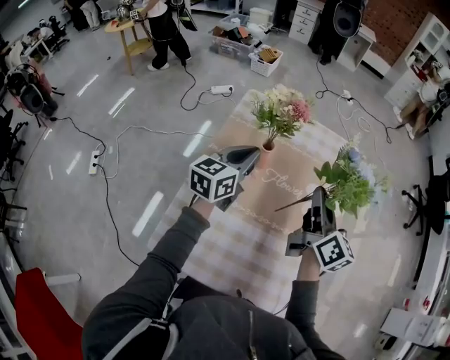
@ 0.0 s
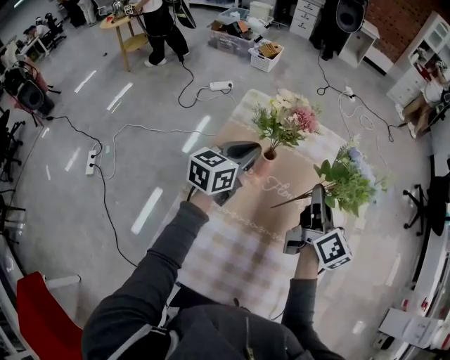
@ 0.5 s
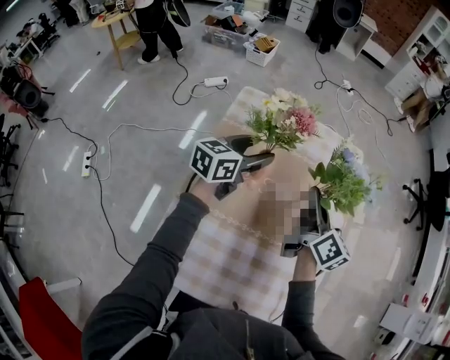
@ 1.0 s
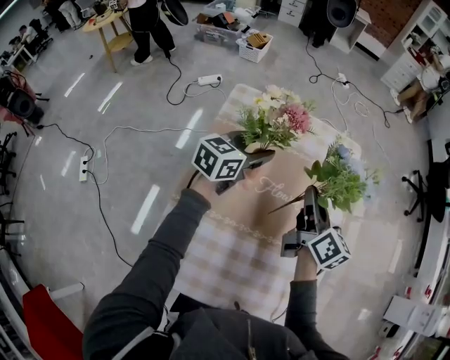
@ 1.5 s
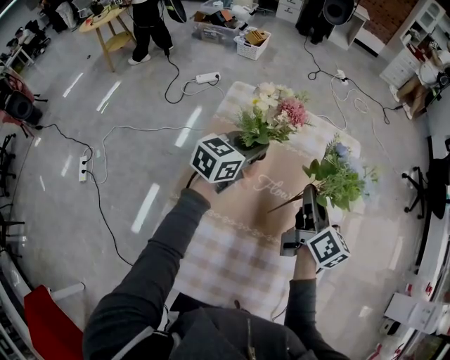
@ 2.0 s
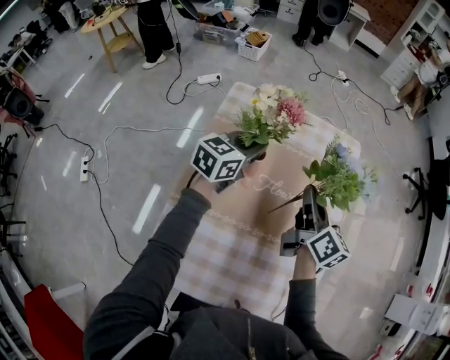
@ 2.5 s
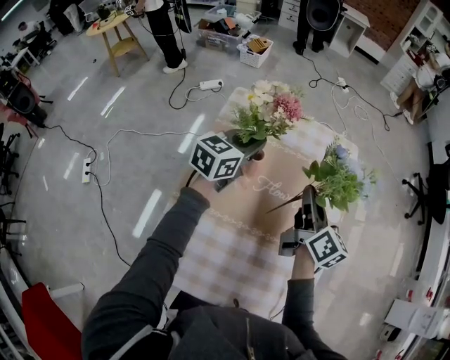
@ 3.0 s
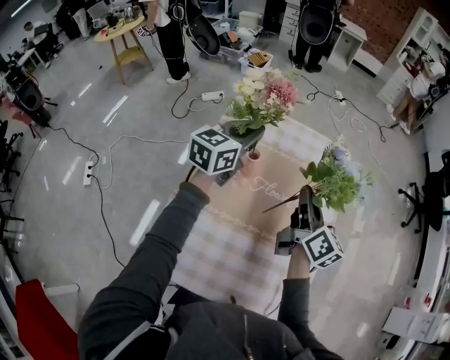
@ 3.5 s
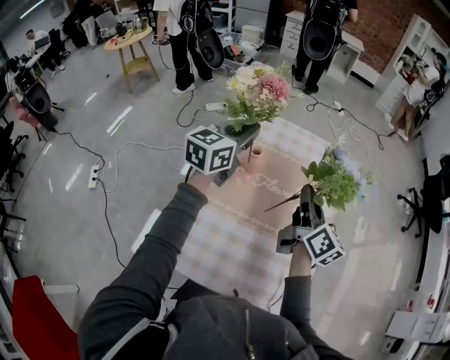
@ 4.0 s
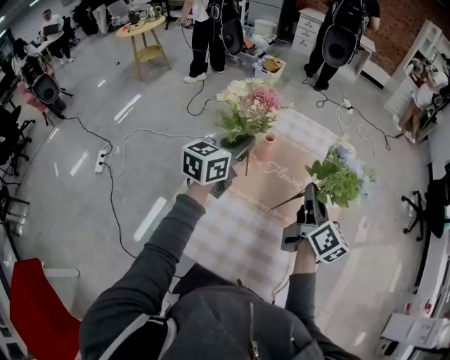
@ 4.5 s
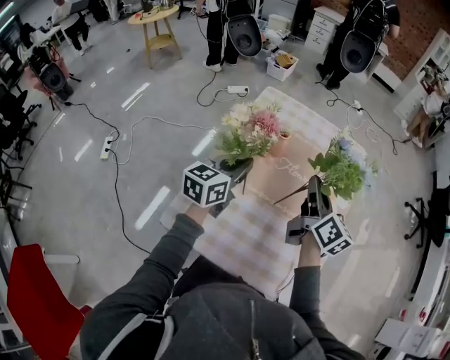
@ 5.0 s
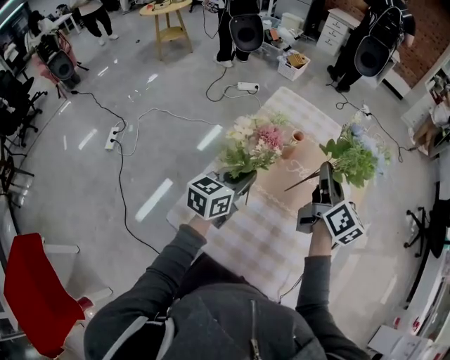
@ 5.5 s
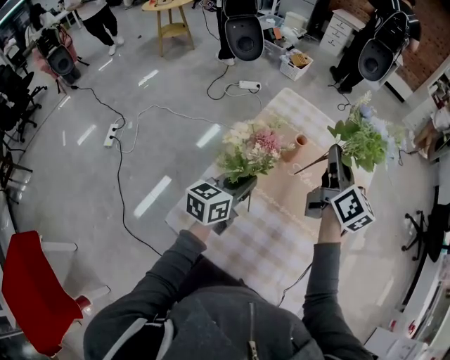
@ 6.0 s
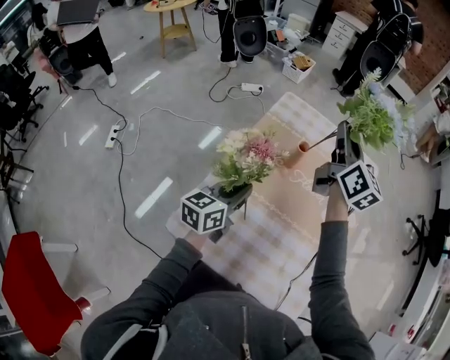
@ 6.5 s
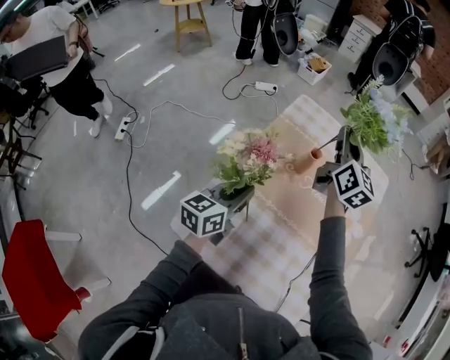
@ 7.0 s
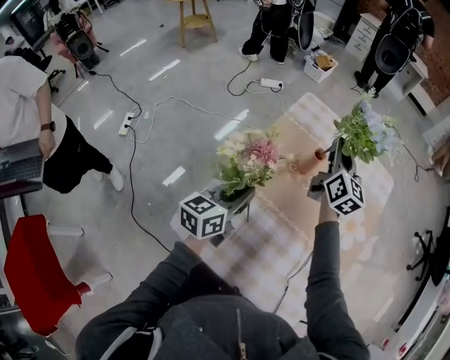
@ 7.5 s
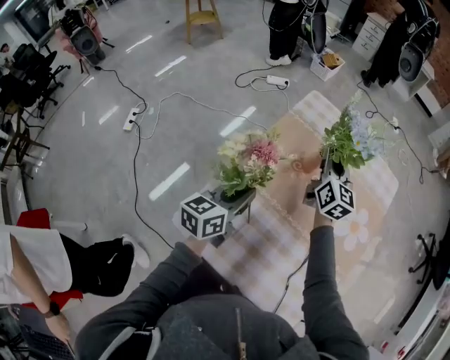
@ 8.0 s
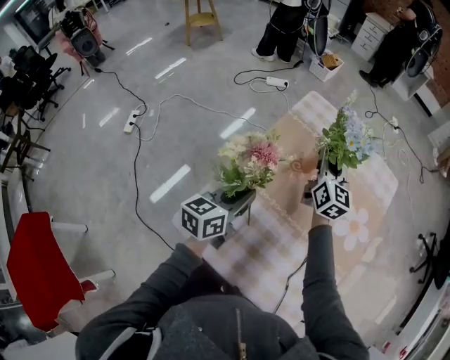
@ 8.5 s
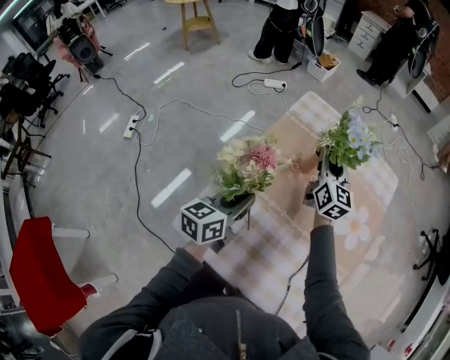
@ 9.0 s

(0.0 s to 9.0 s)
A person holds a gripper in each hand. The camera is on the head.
0.0 s - 2.0 s: The left gripper shifts some 10 cm forward, and opens and closes again. Meanwhile the right gripper heads downward and forward, covering about 10 cm.
2.0 s - 4.5 s: Both grippers move backward and upward, some 15 cm.
4.5 s - 7.0 s: The left gripper is displaced backward, downward and to the left by approximately 15 cm. Meanwhile the right gripper moves forward and to the left, roughly 20 cm, and swivels approximately 20 degrees.
7.0 s - 9.0 s: The right gripper goes approximately 10 cm downward.

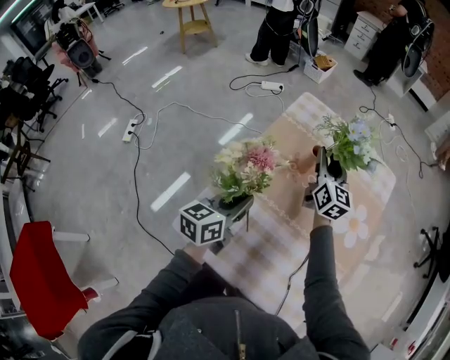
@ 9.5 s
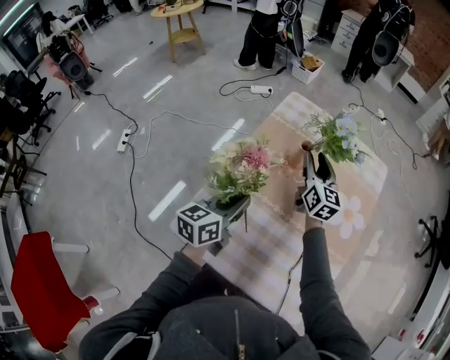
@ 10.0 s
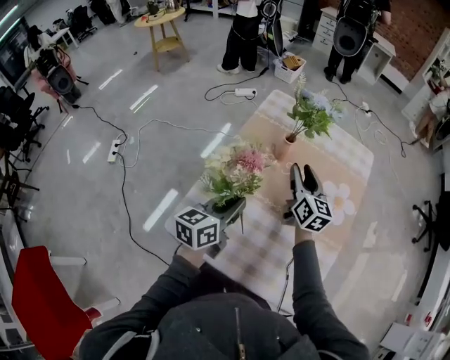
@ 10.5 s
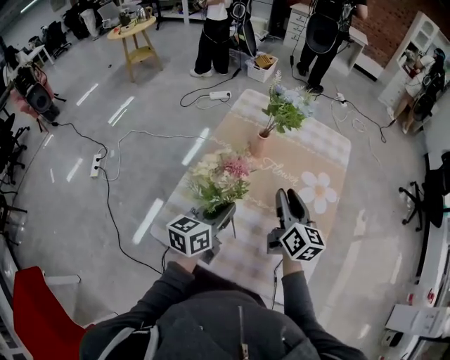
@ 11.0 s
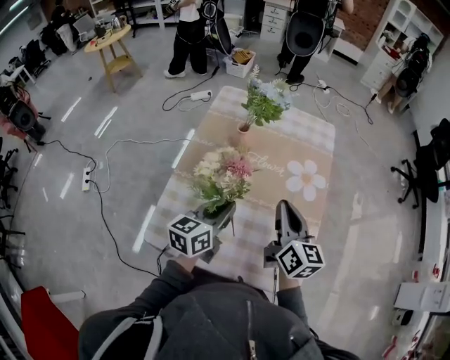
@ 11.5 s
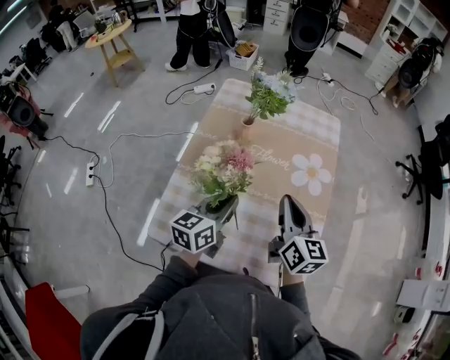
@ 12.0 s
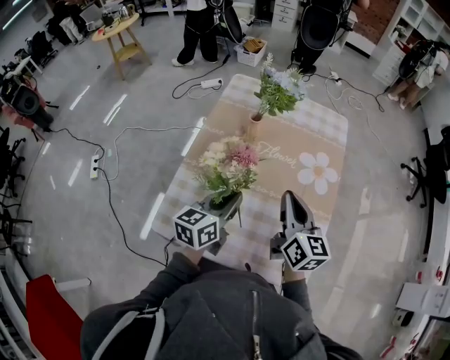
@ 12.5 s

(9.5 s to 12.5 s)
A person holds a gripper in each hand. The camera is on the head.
9.5 s - 11.0 s: The left gripper is displaced to the right by about 5 cm. The right gripper is displaced backward and to the right by approximately 20 cm.
11.0 s - 12.5 s: The right gripper goes some 5 cm backward, and closes up.

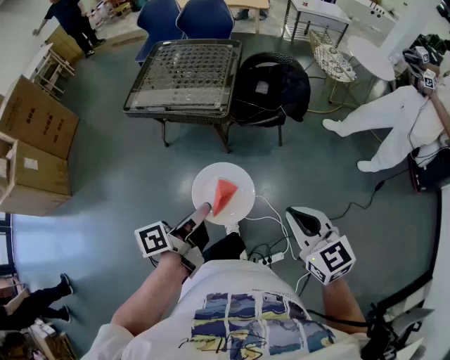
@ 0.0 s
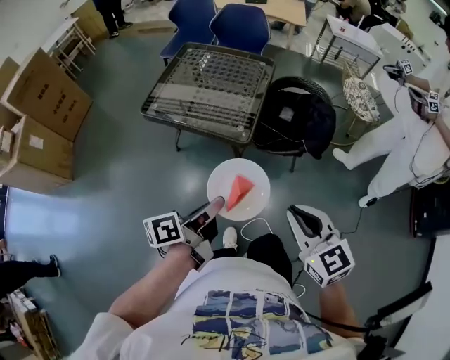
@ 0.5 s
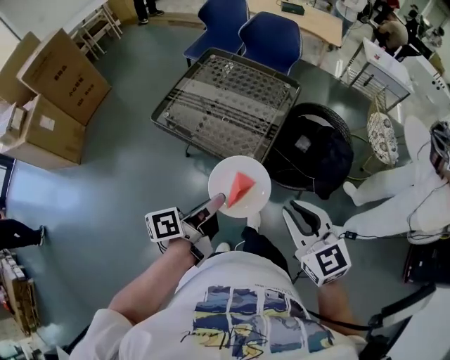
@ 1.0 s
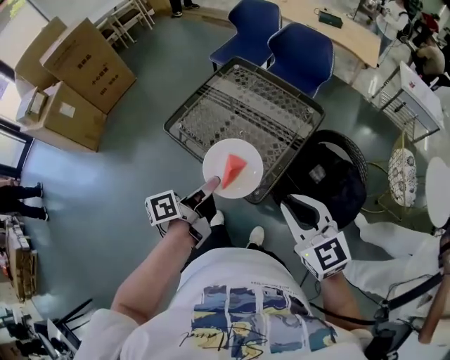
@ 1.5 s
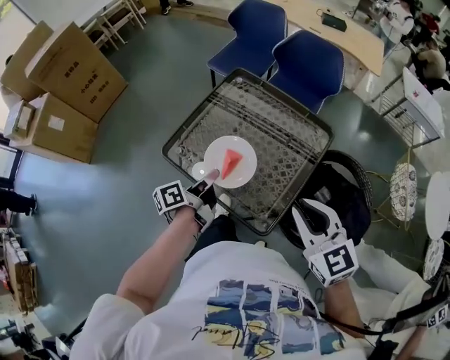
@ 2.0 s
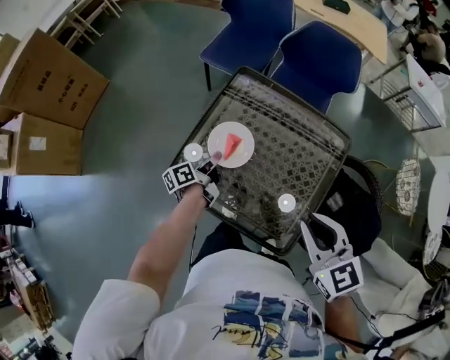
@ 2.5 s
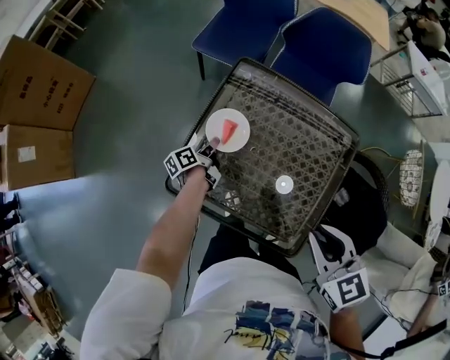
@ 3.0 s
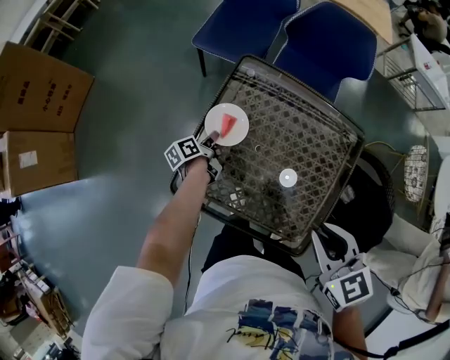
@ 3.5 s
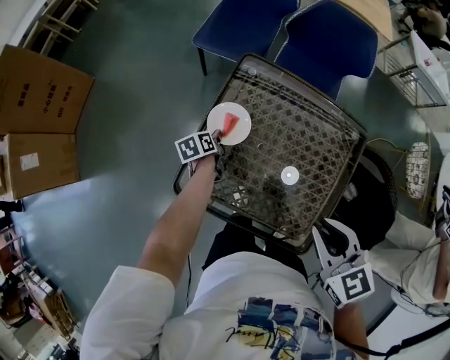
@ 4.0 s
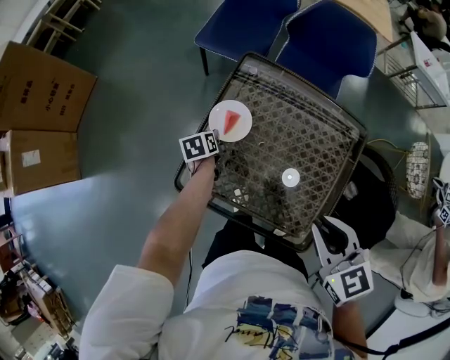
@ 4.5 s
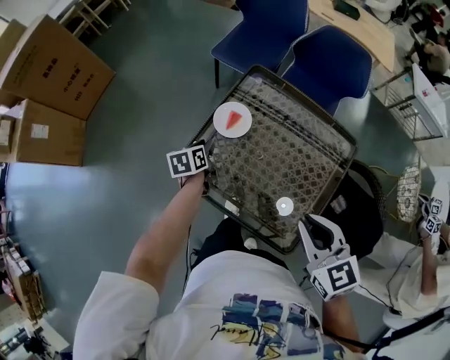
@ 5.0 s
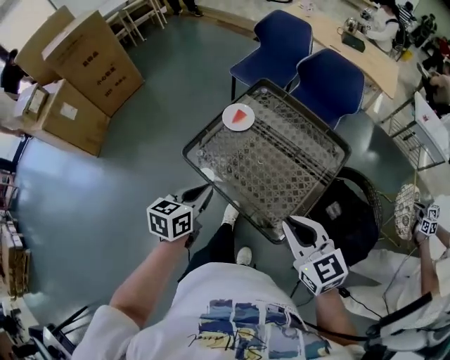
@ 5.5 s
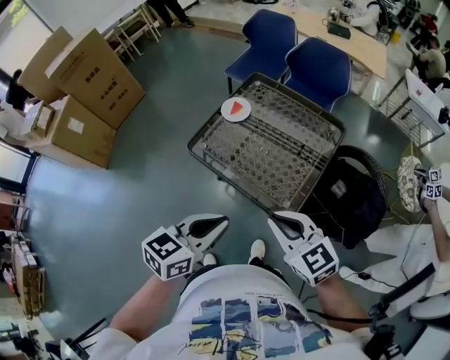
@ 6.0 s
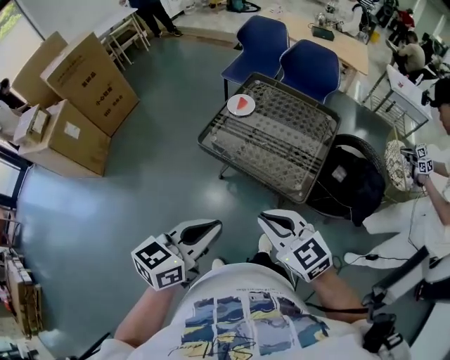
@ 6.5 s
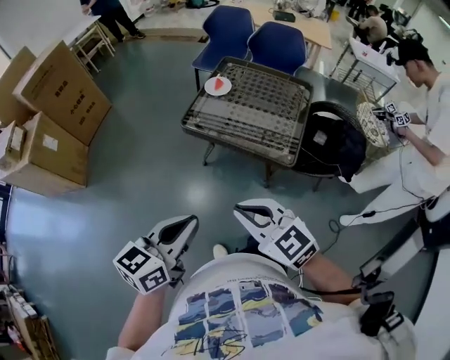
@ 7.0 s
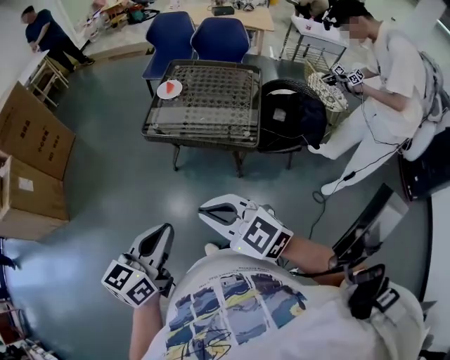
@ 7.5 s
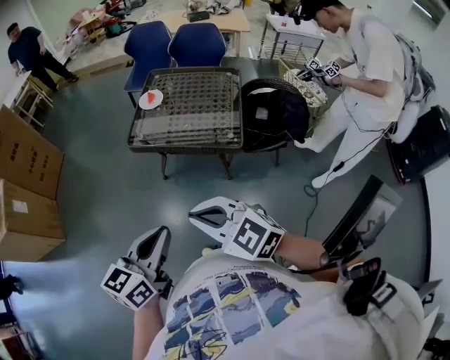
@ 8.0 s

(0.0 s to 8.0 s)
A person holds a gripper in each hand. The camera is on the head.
0.0 s - 2.0 s: The two grippers travel together, approximately 60 cm. The right gripper rotates some 20 degrees. Meanwhile the left gripper swivels approximately 30 degrees.
2.0 s - 4.0 s: The right gripper is displaced forward and to the left by some 25 cm, and rotates roughly 20 degrees, while the left gripper is displaced forward, downward and to the left by approximately 40 cm, and angles its fingers downward, by about 40 degrees.
4.0 s - 6.0 s: The left gripper travels backward and upward by roughly 70 cm, and swivels approximately 50 degrees, while the right gripper shifts some 30 cm backward, and turns by about 30 degrees.
6.0 s - 8.0 s: The grippers both shift backward and to the left by about 35 cm.

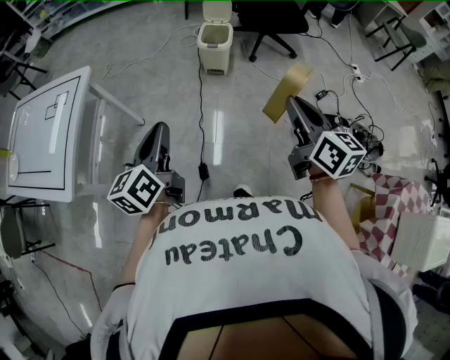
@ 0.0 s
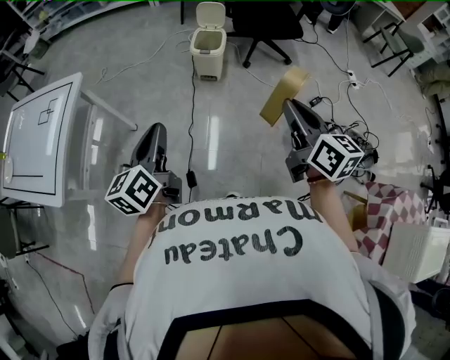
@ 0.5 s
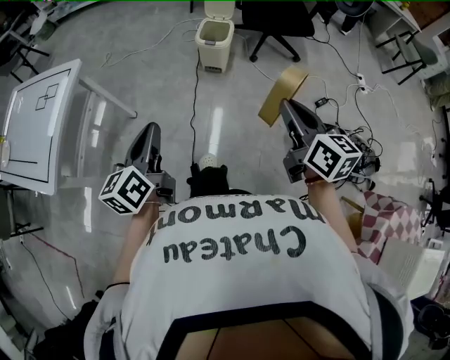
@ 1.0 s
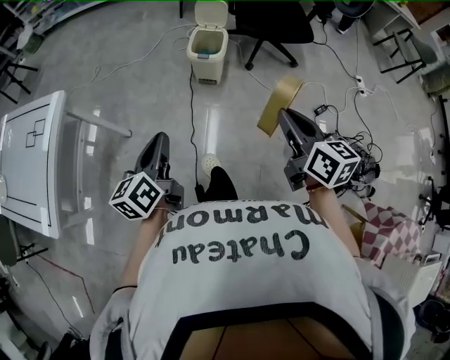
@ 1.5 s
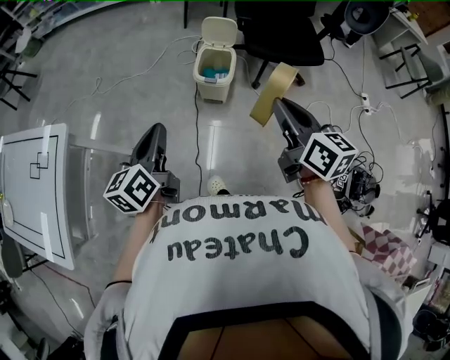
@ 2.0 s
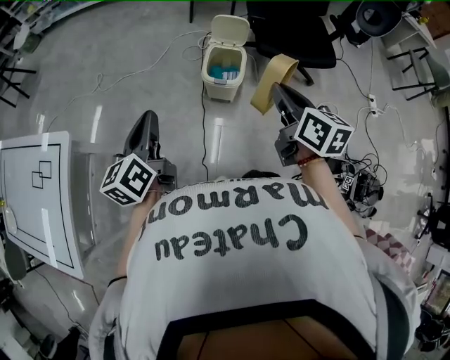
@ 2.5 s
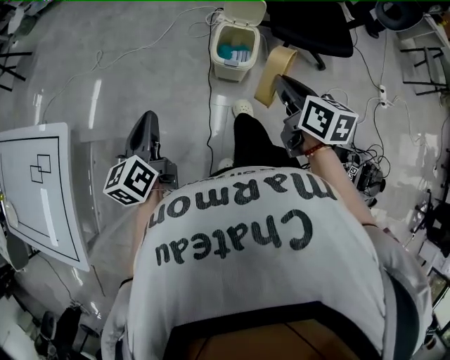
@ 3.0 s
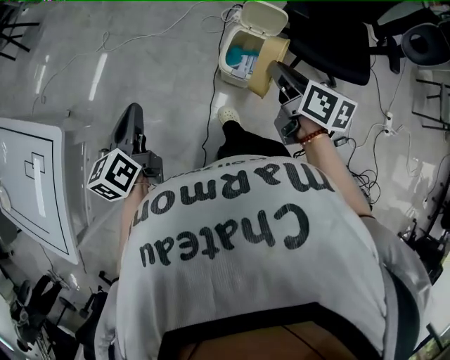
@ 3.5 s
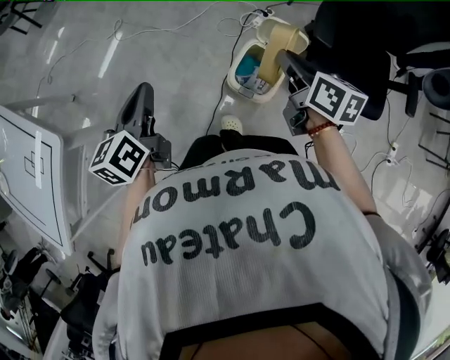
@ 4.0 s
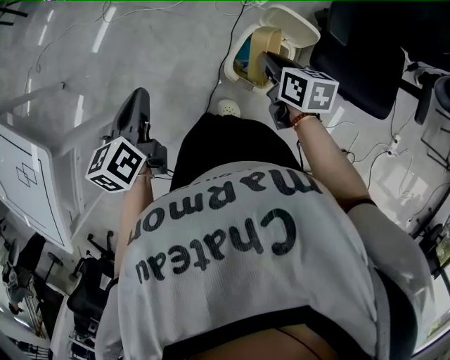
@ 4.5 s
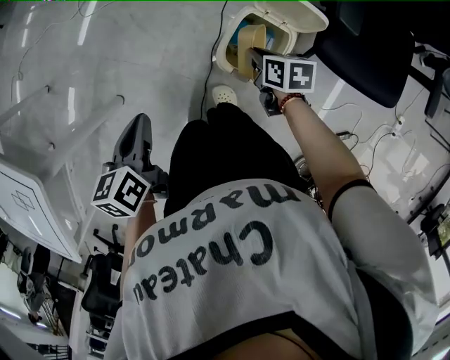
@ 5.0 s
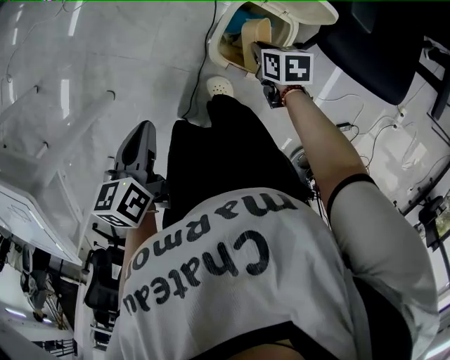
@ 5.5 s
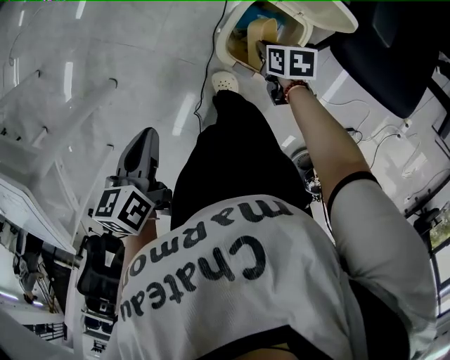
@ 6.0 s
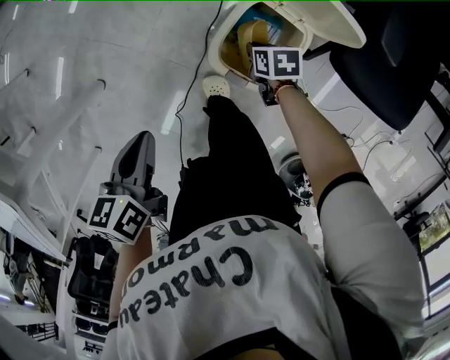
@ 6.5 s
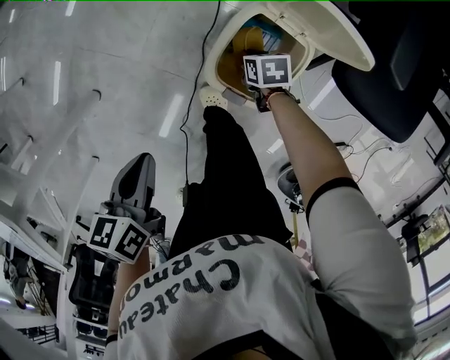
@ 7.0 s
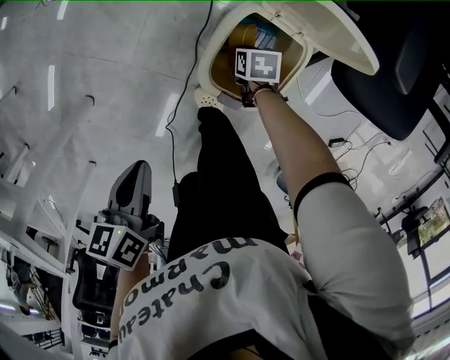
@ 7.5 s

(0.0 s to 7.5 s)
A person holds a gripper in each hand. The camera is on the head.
0.0 s - 2.0 s: Both grippers move forward, some 35 cm.
2.0 s - 4.0 s: The grippers both shift forward by about 40 cm. The left gripper swivels some 20 degrees, while the right gripper swivels about 20 degrees.
4.0 s - 5.5 s: The left gripper moves downward, about 20 cm, and rotates about 30 degrees, while the right gripper heads downward, covering about 35 cm, and angles its fingers downward, by roughly 30 degrees.
5.5 s - 7.5 s: The right gripper moves downward, roughly 20 cm. The left gripper is displaced downward by some 10 cm.
